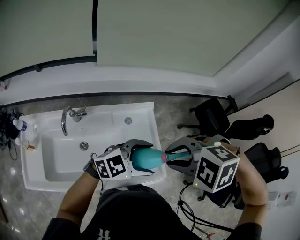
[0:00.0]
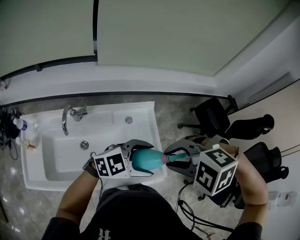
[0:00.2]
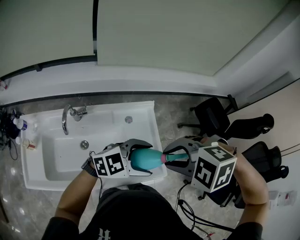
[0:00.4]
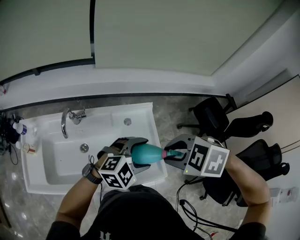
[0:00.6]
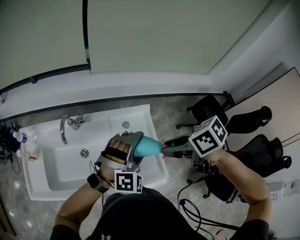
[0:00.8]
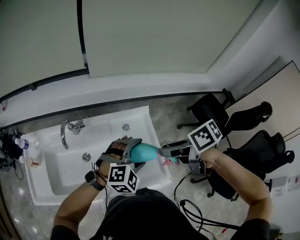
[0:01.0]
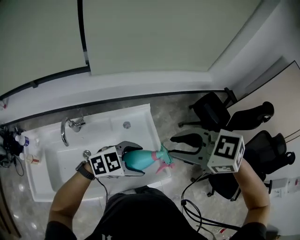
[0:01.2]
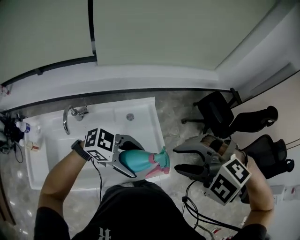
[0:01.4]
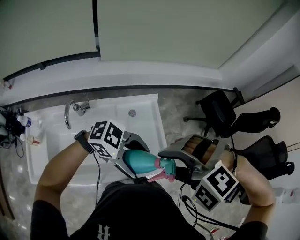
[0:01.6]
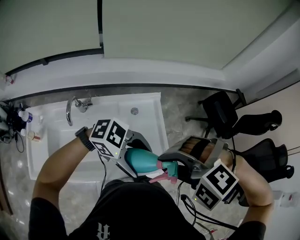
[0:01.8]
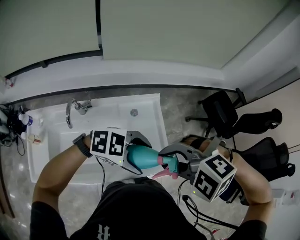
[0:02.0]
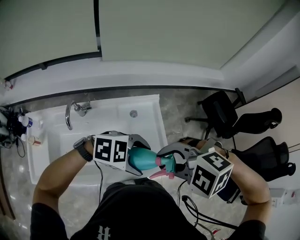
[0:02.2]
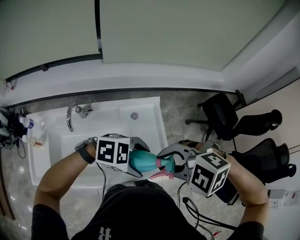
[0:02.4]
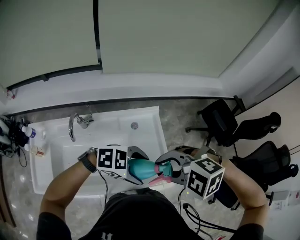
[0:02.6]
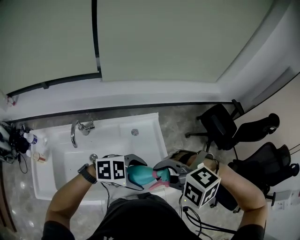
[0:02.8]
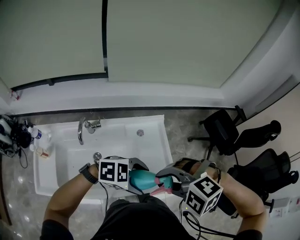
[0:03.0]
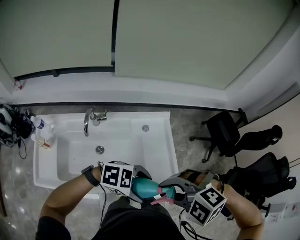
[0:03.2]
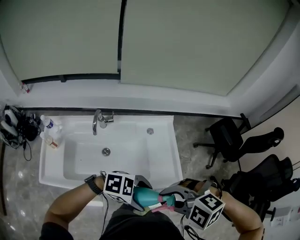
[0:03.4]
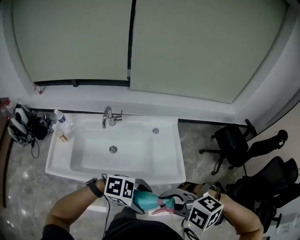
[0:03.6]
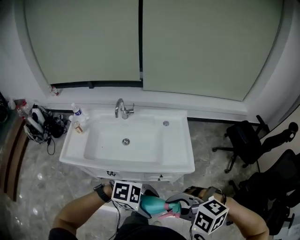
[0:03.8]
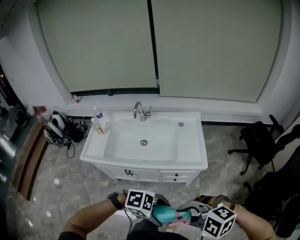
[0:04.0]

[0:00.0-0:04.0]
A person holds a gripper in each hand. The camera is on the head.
0:00.0 to 0:01.4: The right gripper travels downward and back again, roughly 5 cm each way. The left gripper moves roughly 5 cm, and swivels about 30 degrees.
0:01.4 to 0:02.6: The right gripper shifts roughly 5 cm downward.
0:02.6 to 0:04.0: The pair of grippers is taken some 50 cm.

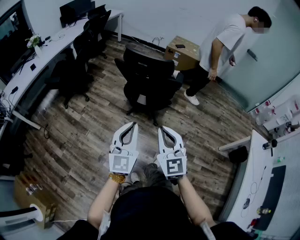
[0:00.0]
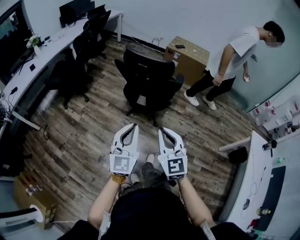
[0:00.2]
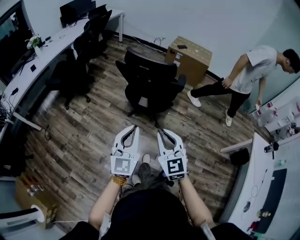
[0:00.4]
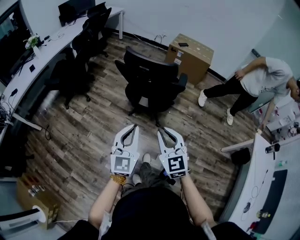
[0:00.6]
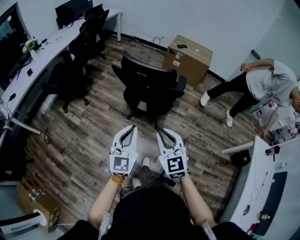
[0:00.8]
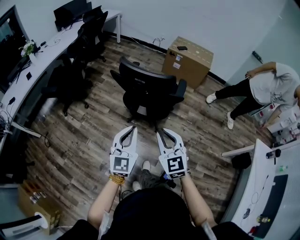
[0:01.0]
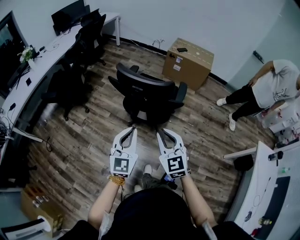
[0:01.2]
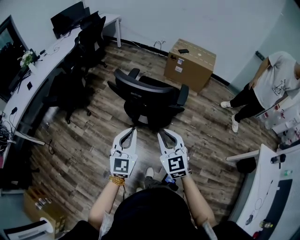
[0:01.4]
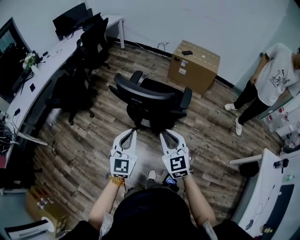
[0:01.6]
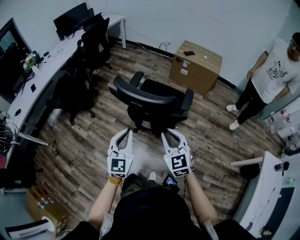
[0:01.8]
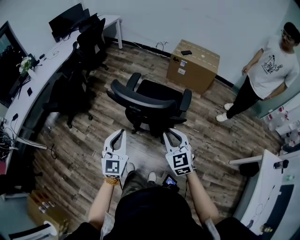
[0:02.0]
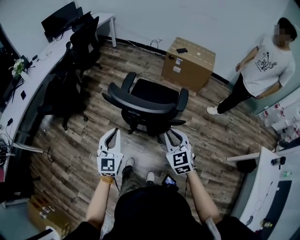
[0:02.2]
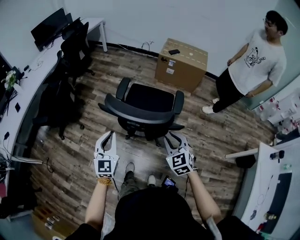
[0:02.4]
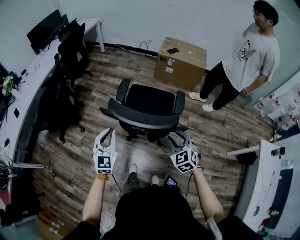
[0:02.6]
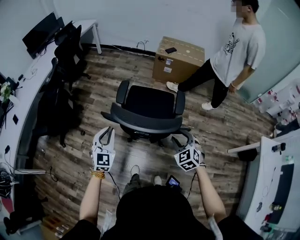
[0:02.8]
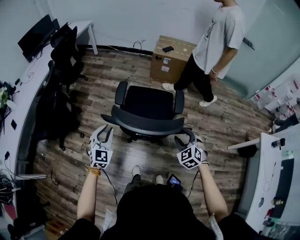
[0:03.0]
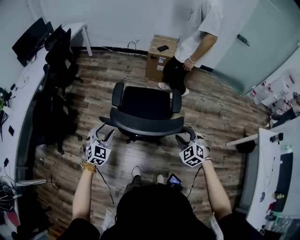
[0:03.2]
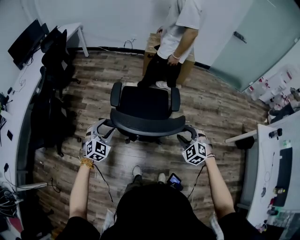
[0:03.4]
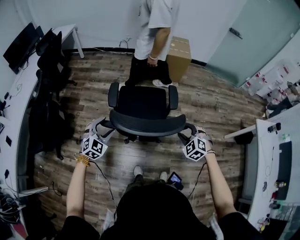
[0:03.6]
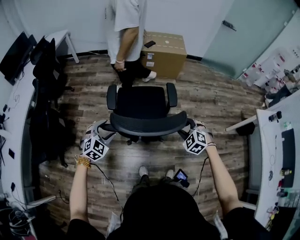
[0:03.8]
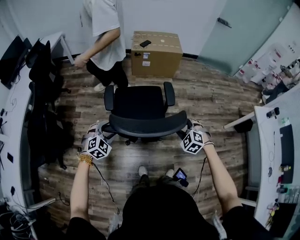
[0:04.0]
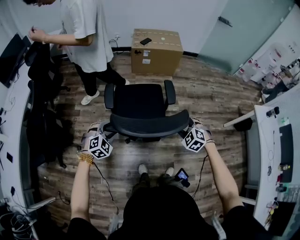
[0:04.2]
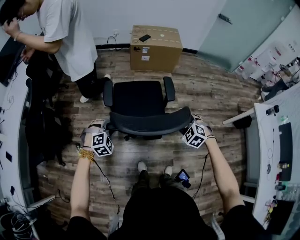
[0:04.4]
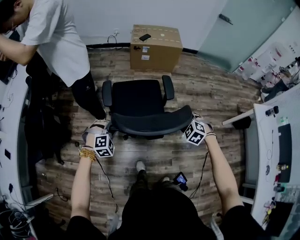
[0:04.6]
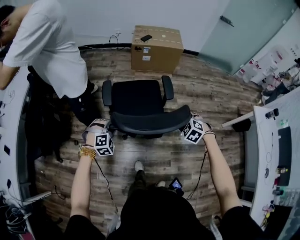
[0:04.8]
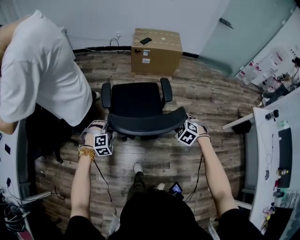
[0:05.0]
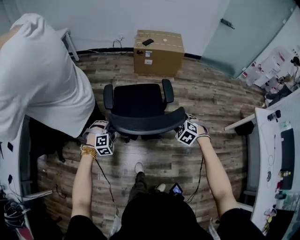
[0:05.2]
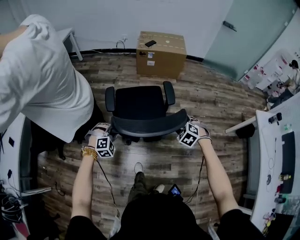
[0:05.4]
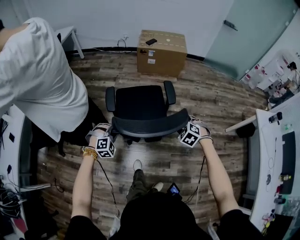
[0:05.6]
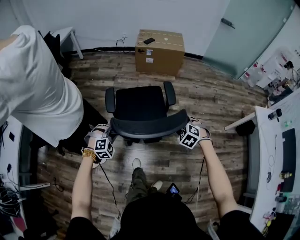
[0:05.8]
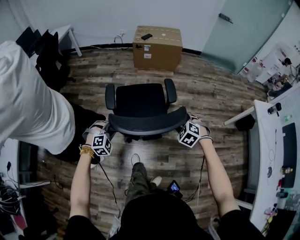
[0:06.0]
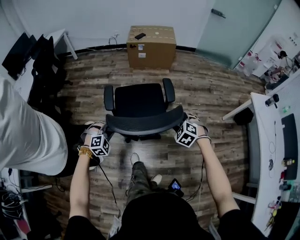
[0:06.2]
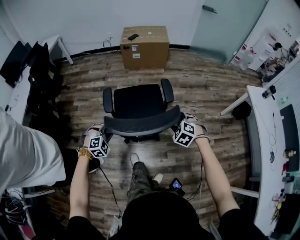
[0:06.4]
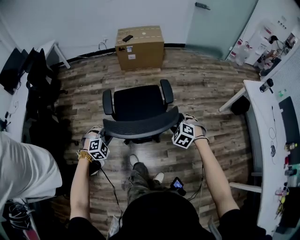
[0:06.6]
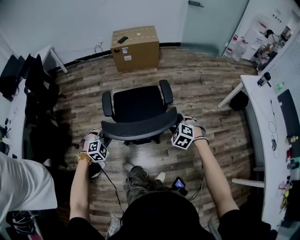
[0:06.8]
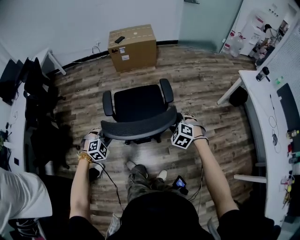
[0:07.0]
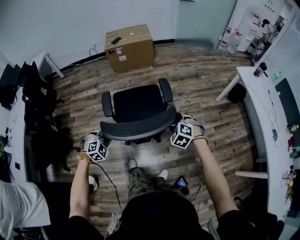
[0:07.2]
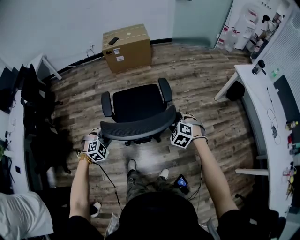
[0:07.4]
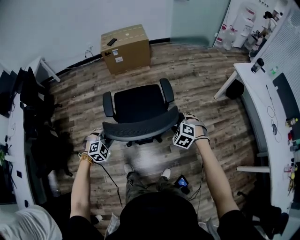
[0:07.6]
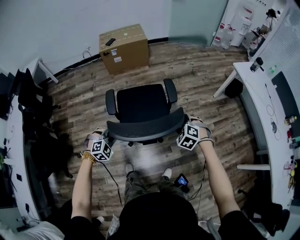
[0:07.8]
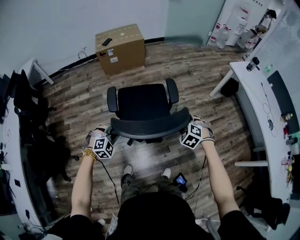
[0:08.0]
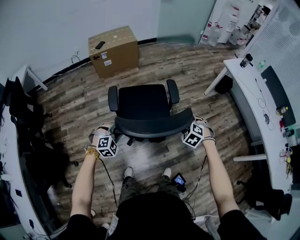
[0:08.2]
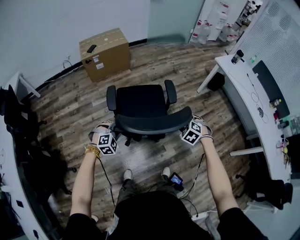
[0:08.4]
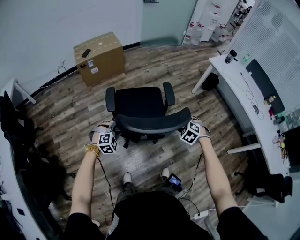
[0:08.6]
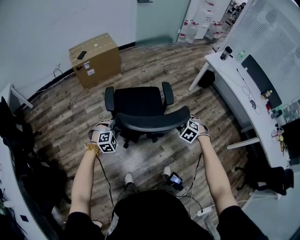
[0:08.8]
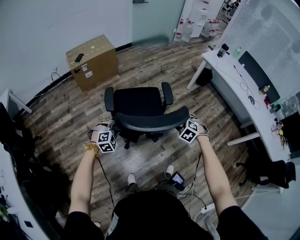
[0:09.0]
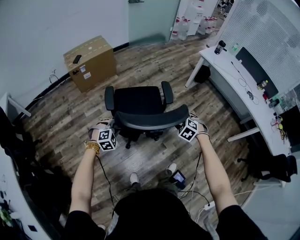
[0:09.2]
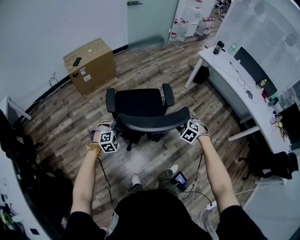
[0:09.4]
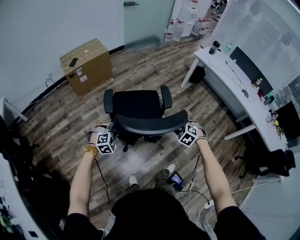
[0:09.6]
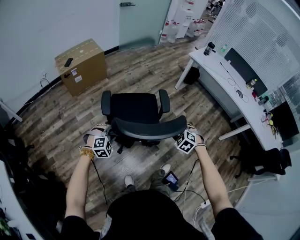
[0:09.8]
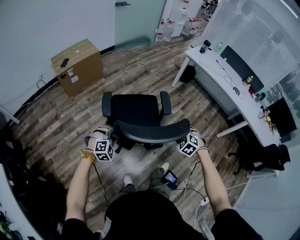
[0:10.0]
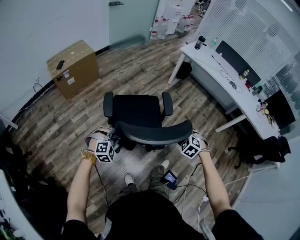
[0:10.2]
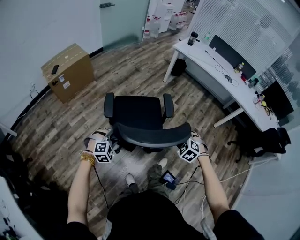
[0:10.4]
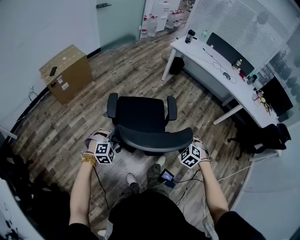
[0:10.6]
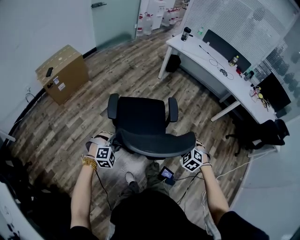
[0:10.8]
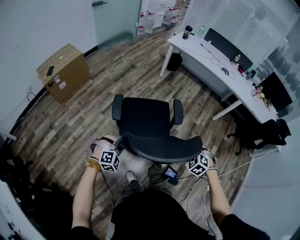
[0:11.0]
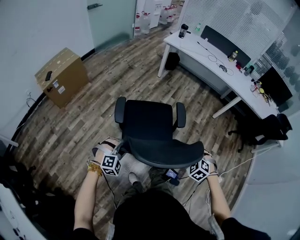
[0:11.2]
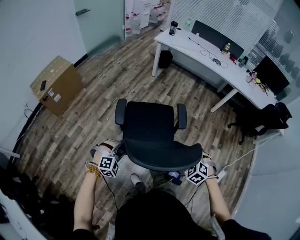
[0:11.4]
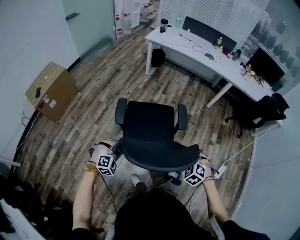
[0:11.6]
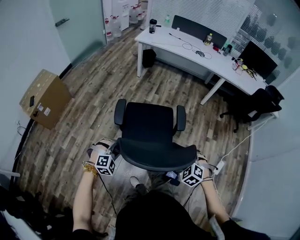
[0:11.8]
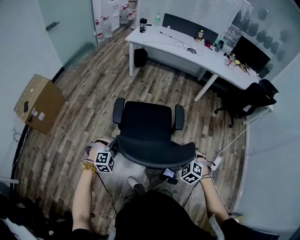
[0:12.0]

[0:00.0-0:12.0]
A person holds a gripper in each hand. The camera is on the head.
0:00.0 to 0:01.6: Both grippers move forward, approximately 25 cm.
0:01.6 to 0:03.0: The left gripper is displaced forward, to the left and downward by some 30 cm, and rotates about 20 degrees, while the right gripper shifts some 20 cm forward and downward, swivels roughly 30 degrees, and opens its fingers.
0:03.0 to 0:04.4: The left gripper moves downward and forward, about 10 cm, and tilts its fingers roughly 40 degrees downward. Meanwhile the right gripper shifts by some 5 cm.
0:04.4 to 0:06.0: The two grippers go about 15 cm backward and to the right.
0:06.0 to 0:07.6: The left gripper goes approximately 10 cm to the right. The right gripper shifts about 10 cm to the right and backward.
0:07.6 to 0:09.0: The right gripper rotates roughly 30 degrees, while the left gripper moves roughly 10 cm, and rotates approximately 20 degrees.
0:09.0 to 0:10.4: The right gripper heads backward and to the right, covering approximately 20 cm. The left gripper is displaced backward and to the right by approximately 10 cm.
0:10.4 to 0:12.0: The right gripper ends up roughly 20 cm from where it was, and turns by approximately 30 degrees, while the left gripper ends up roughly 15 cm from where it was, and swivels about 30 degrees.

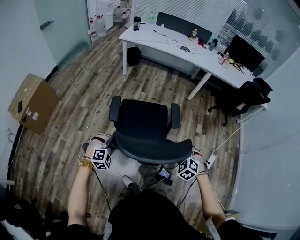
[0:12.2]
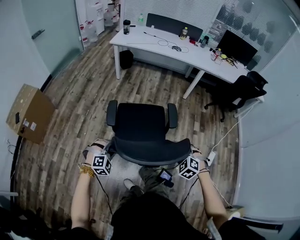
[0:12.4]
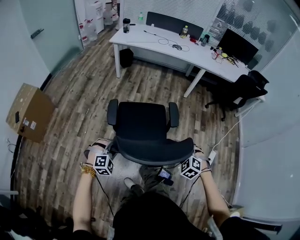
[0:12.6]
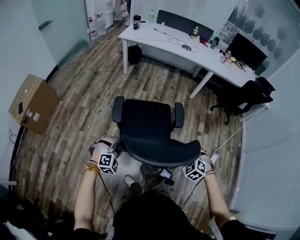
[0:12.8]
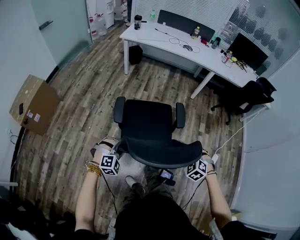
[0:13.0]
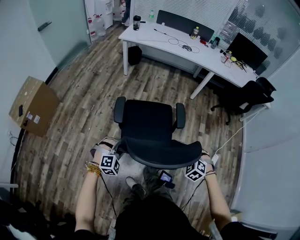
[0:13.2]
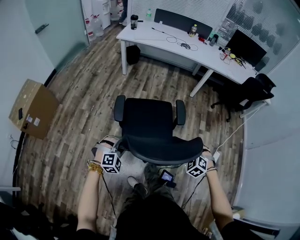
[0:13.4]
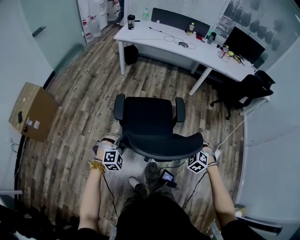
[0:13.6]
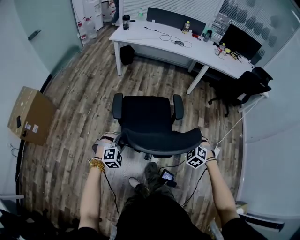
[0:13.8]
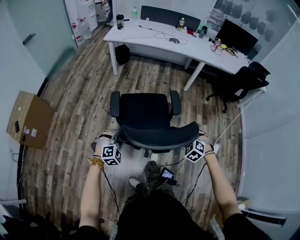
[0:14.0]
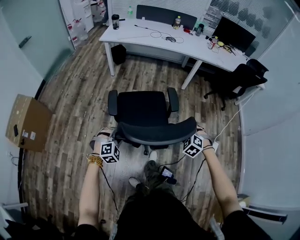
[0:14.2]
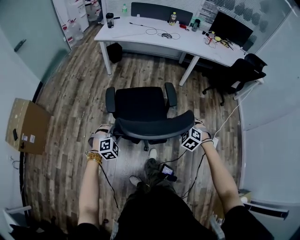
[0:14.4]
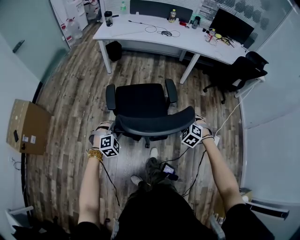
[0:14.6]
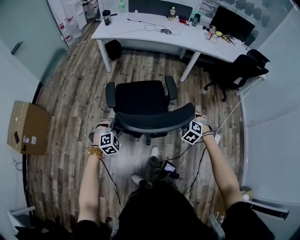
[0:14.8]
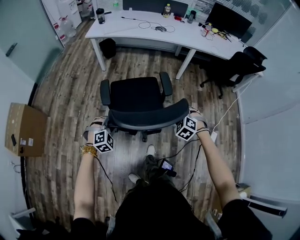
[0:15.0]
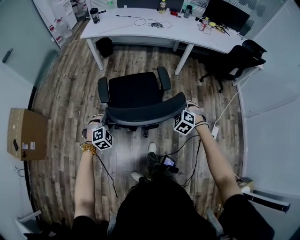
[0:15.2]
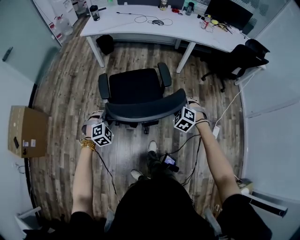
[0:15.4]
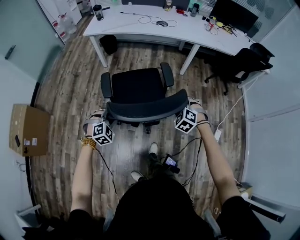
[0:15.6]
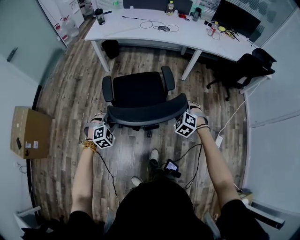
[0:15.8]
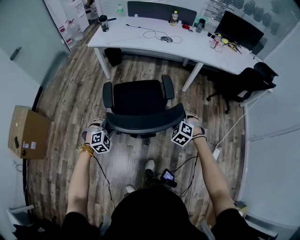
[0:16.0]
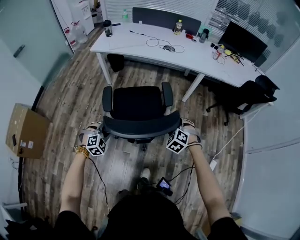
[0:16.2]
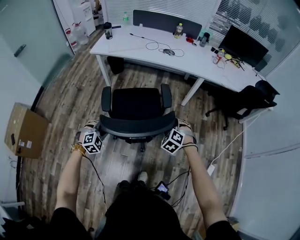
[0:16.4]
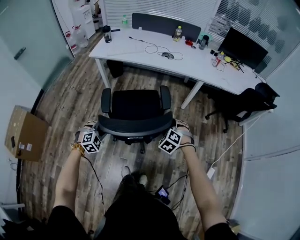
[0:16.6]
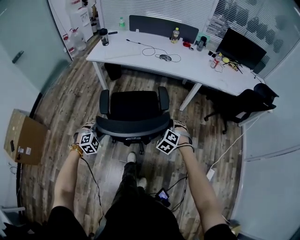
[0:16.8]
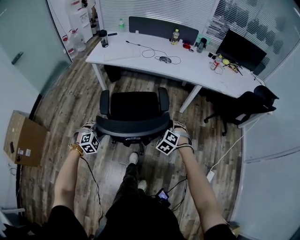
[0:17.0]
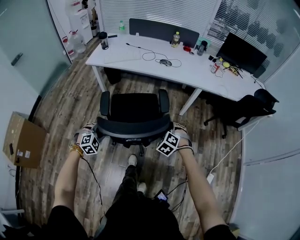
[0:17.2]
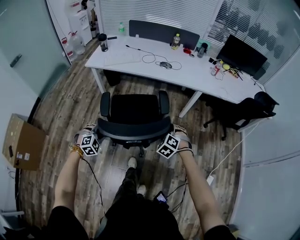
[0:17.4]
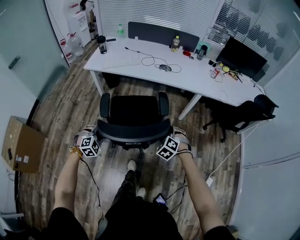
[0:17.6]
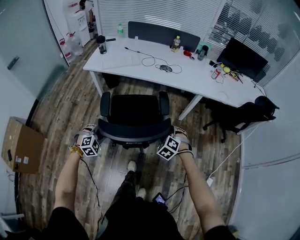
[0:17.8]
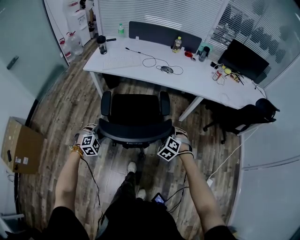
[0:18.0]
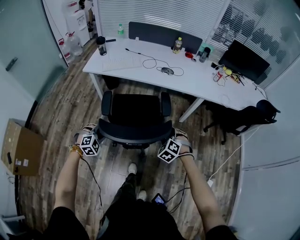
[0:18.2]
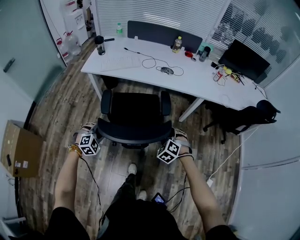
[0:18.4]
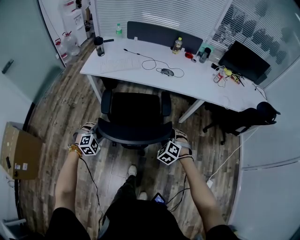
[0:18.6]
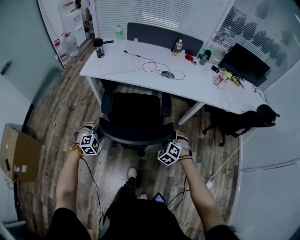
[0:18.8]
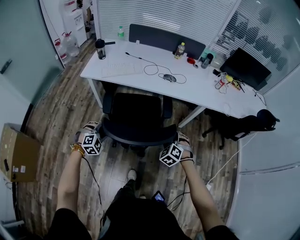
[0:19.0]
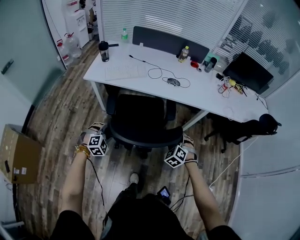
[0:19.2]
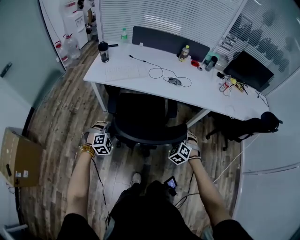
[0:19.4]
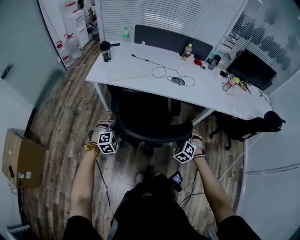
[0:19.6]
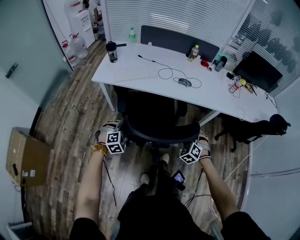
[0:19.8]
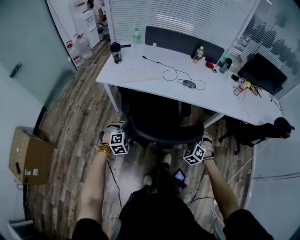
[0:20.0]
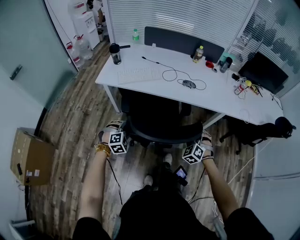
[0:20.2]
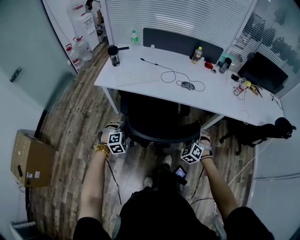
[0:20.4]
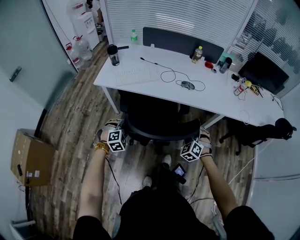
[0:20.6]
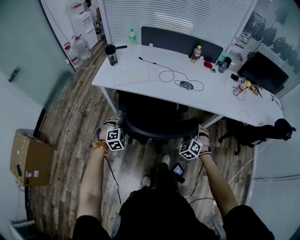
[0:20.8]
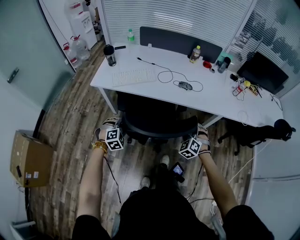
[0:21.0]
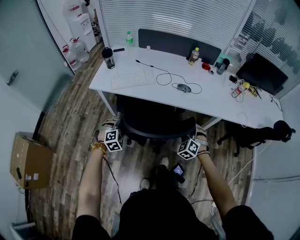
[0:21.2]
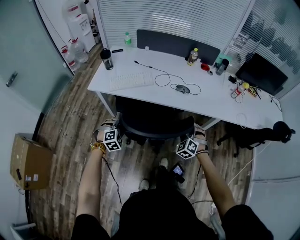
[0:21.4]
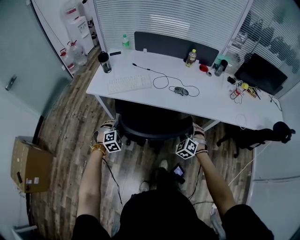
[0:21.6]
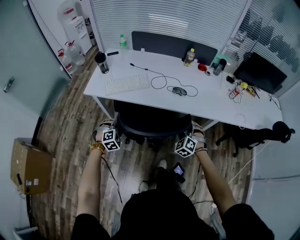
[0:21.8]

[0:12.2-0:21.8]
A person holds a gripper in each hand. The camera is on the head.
0:12.2 to 0:13.8: Both grippers travel together forward, some 10 cm.
0:13.8 to 0:15.4: Both grippers move forward, roughly 20 cm.
0:15.4 to 0:17.0: The grippers both shift forward by some 20 cm.
0:17.0 to 0:18.6: The grippers both shift forward and to the left by roughly 15 cm.
0:18.6 to 0:20.2: The two grippers go about 15 cm forward.
0:20.2 to 0:21.8: Both grippers move forward, approximately 10 cm.
